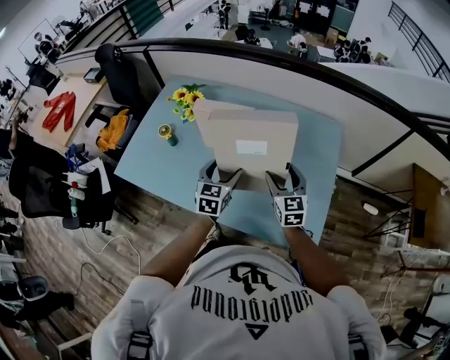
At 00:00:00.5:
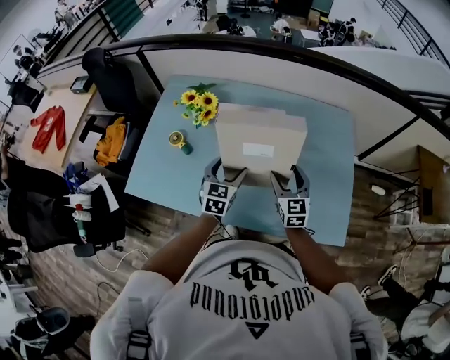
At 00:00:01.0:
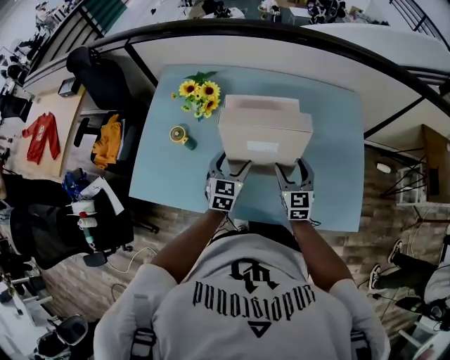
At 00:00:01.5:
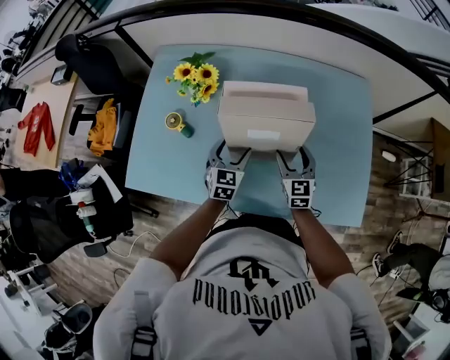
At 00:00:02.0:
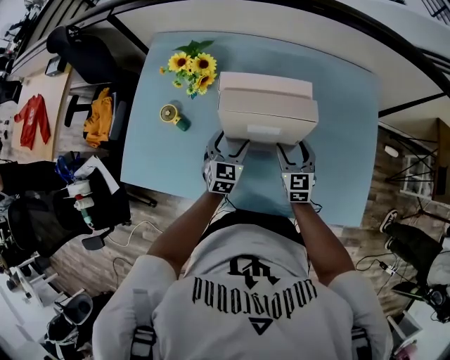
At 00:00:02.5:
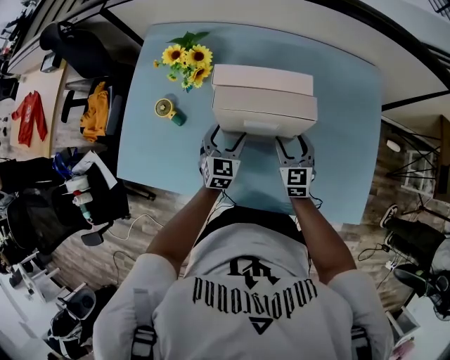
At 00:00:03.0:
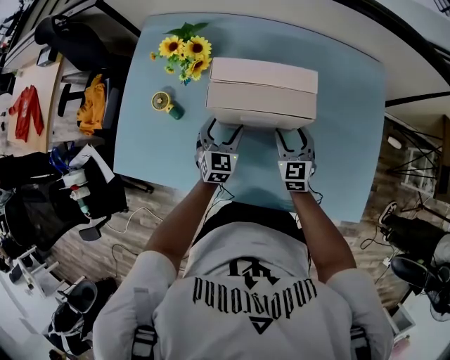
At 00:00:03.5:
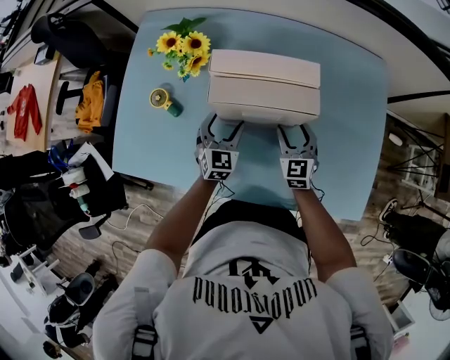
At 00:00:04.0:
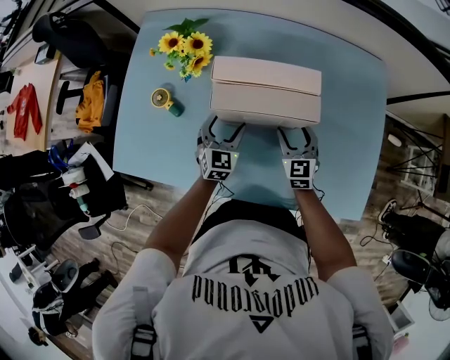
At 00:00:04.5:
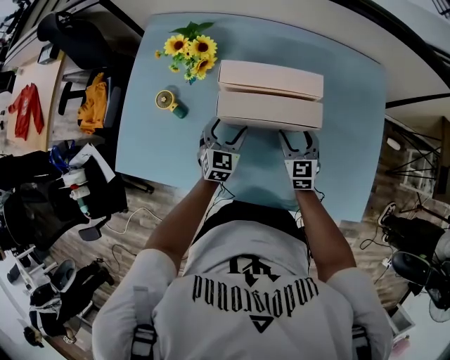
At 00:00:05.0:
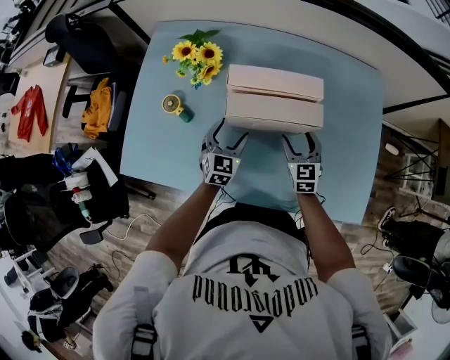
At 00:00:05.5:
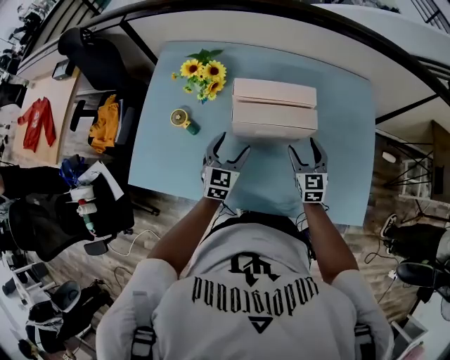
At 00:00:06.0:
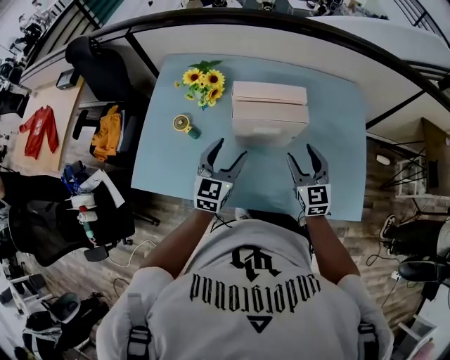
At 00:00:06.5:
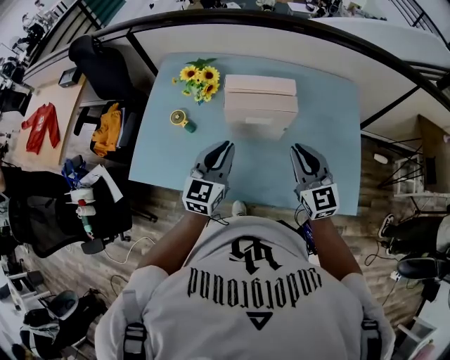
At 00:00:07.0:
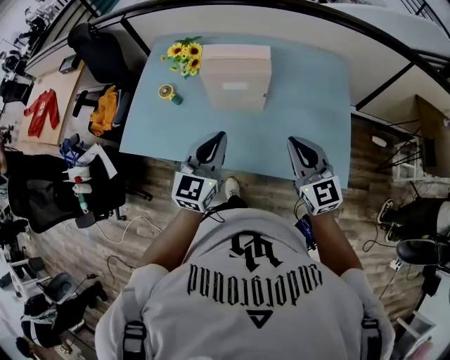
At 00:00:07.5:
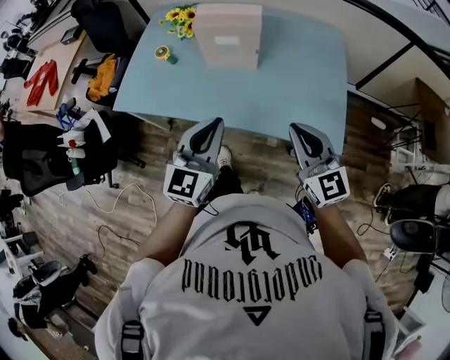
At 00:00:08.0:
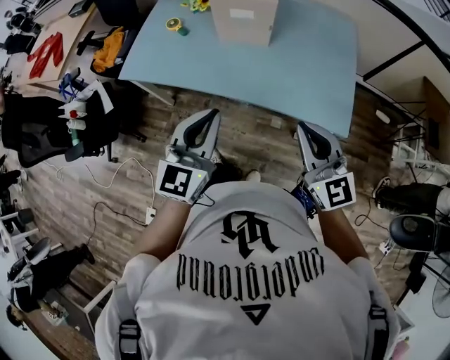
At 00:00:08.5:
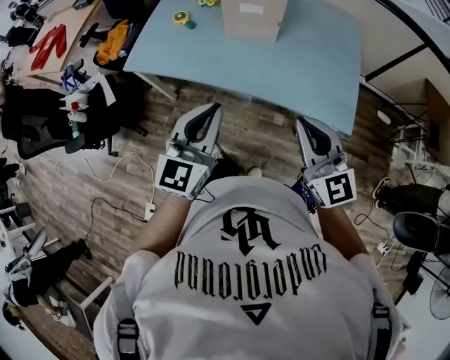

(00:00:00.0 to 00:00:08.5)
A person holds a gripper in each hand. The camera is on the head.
00:00:00.0 - 00:00:02.0: The left gripper travels downward, to the left and forward by roughly 25 cm. Meanwhile the right gripper heads to the left, downward and forward, covering roughly 25 cm.
00:00:02.0 - 00:00:04.0: The grippers stay close to where they were, moving slightly.
00:00:04.0 - 00:00:06.5: The grippers both shift upward and backward by about 30 cm. The right gripper rotates some 20 degrees, and closes its fingers; the left gripper swivels roughly 20 degrees, and closes its fingers.
00:00:06.5 - 00:00:08.5: The grippers both shift backward by about 35 cm.

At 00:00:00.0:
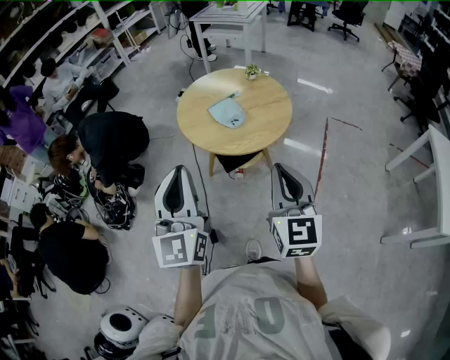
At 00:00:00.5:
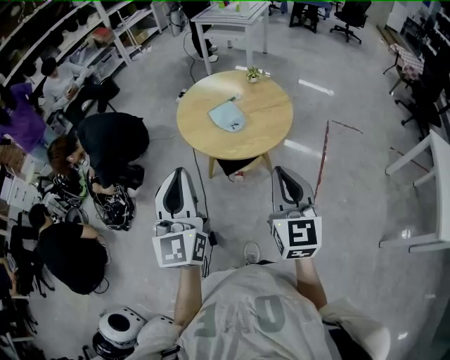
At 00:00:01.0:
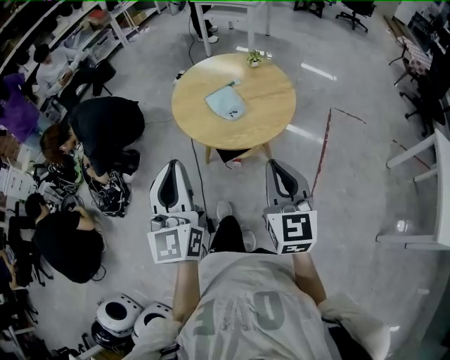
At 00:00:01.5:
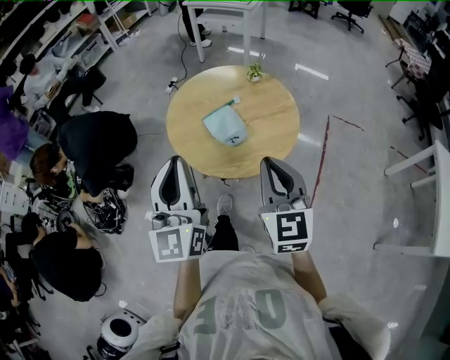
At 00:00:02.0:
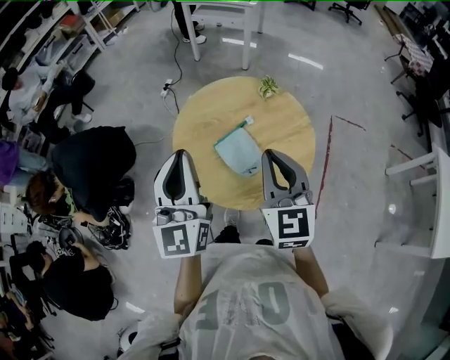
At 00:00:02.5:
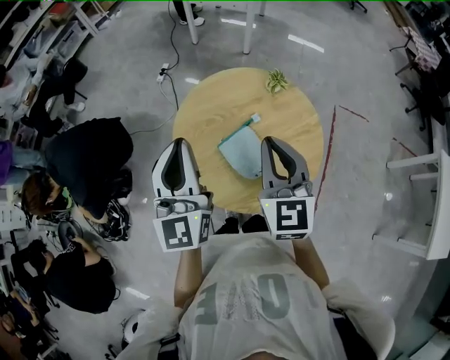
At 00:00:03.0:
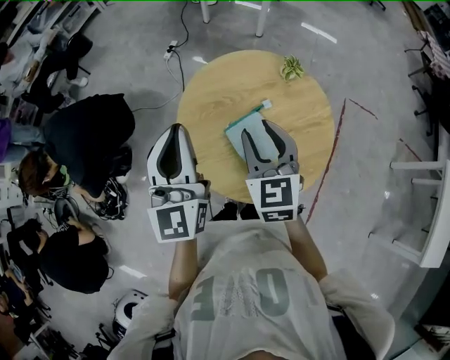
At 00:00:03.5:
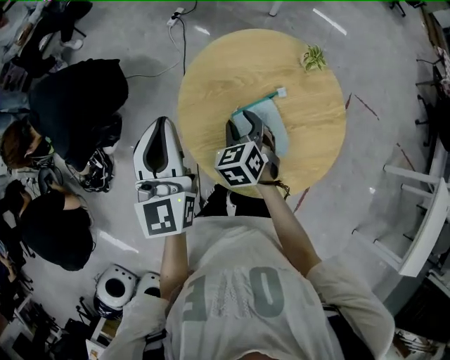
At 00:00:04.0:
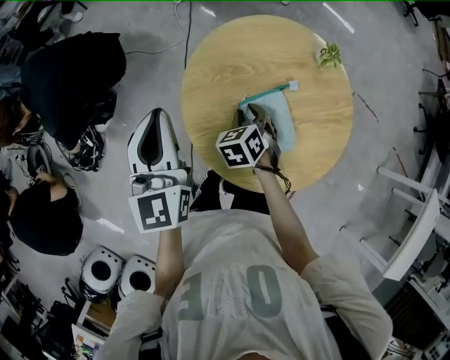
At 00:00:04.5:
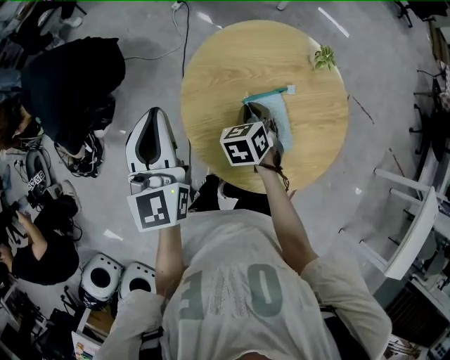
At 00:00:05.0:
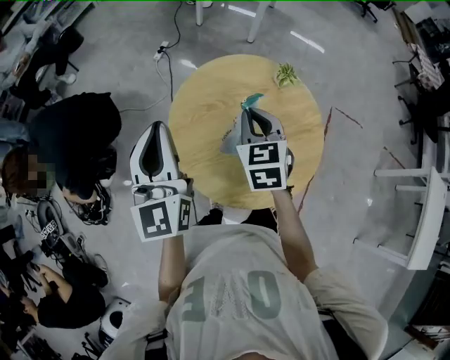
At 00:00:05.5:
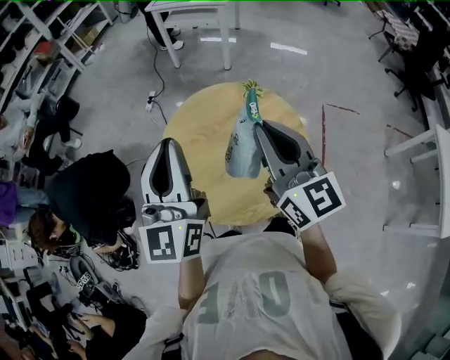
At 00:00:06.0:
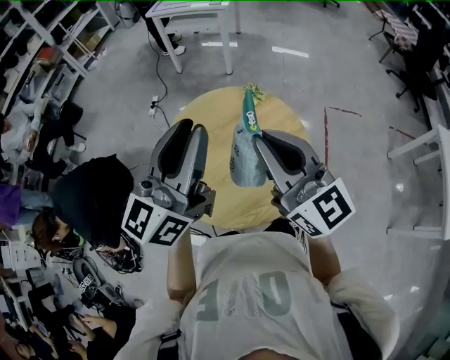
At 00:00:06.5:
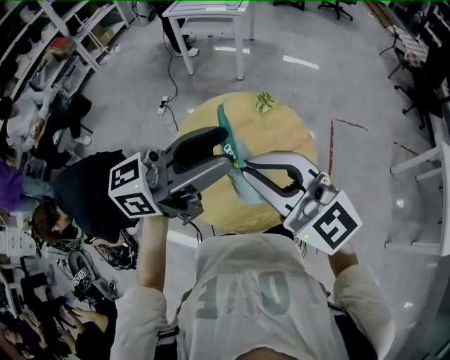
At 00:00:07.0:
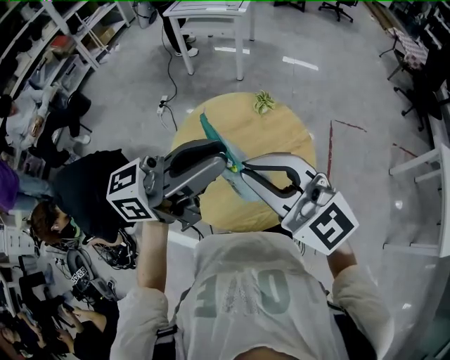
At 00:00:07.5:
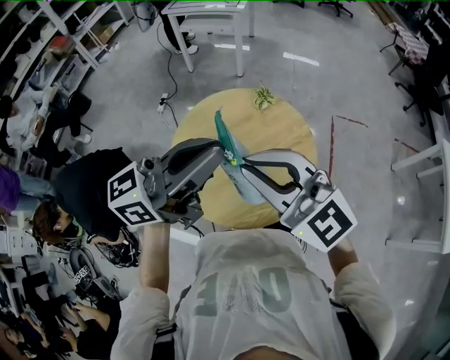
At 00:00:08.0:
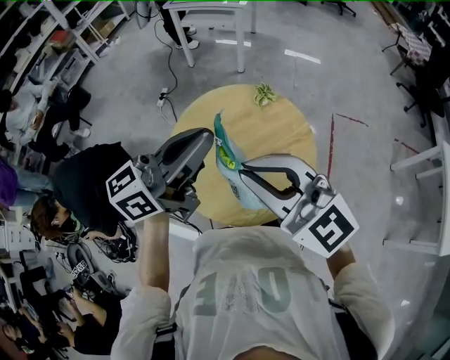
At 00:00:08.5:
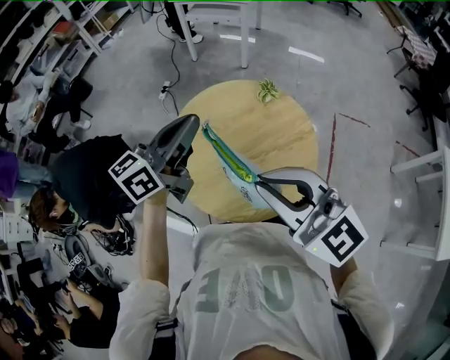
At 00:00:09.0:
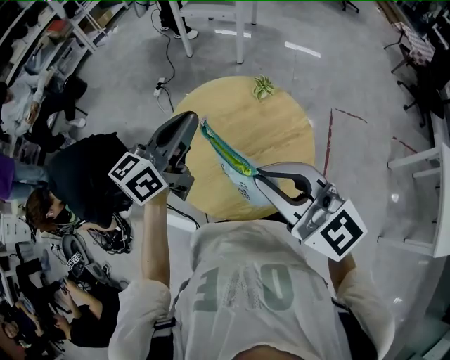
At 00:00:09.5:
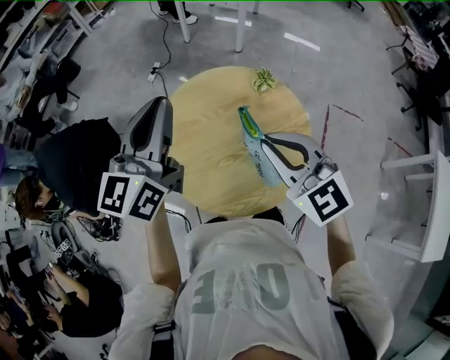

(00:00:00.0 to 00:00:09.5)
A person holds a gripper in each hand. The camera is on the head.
00:00:00.0 - 00:00:02.0: The grippers both shift forward by some 35 cm.
00:00:02.0 - 00:00:04.0: The left gripper moves downward, to the left and forward, about 20 cm, and swivels roughly 20 degrees. The right gripper goes some 35 cm downward and forward, angles its fingers downward, by some 50 degrees, and opens.
00:00:04.0 - 00:00:05.5: The left gripper shifts approximately 25 cm upward and to the right, and swivels approximately 30 degrees, while the right gripper goes approximately 35 cm upward, tilts its fingers some 60 degrees upward, and closes its fingers.
00:00:05.5 - 00:00:07.5: The left gripper ends up about 10 cm from where it was, changes its angle by roughly 70 degrees, and opens, then closes once more. Meanwhile the right gripper moves approximately 10 cm, and swivels approximately 40 degrees.
00:00:07.5 - 00:00:09.5: The right gripper is displaced downward, forward and to the right by roughly 10 cm, and swivels approximately 20 degrees. Meanwhile the left gripper travels forward and to the left by approximately 15 cm, and swivels about 50 degrees.

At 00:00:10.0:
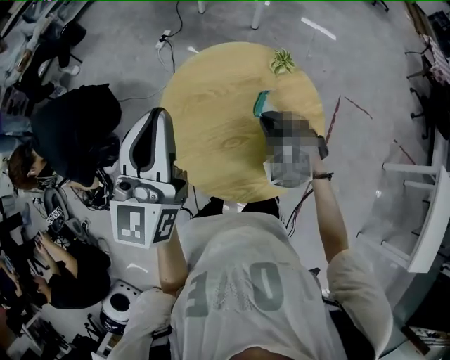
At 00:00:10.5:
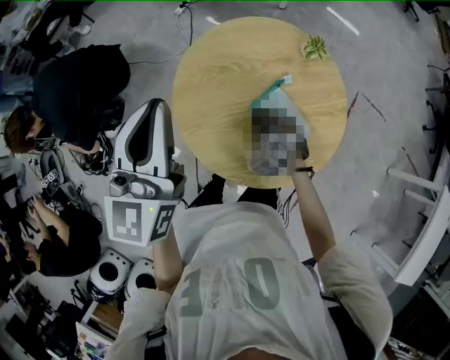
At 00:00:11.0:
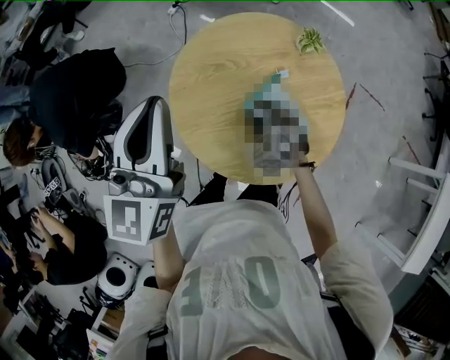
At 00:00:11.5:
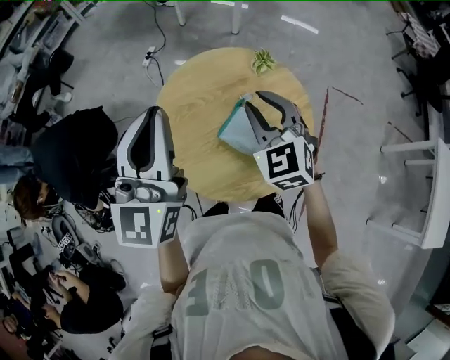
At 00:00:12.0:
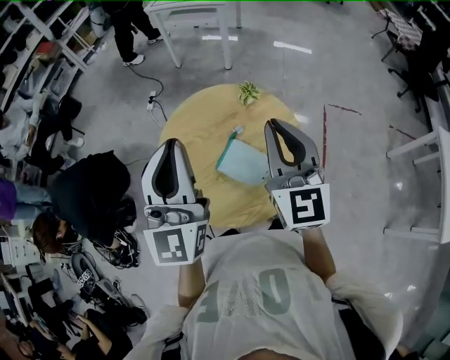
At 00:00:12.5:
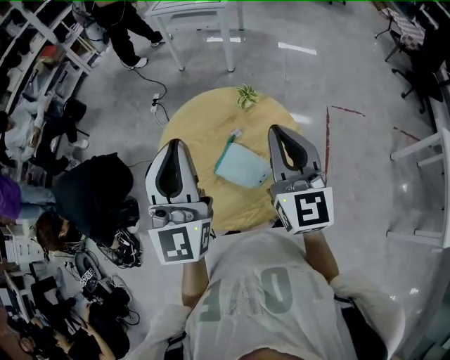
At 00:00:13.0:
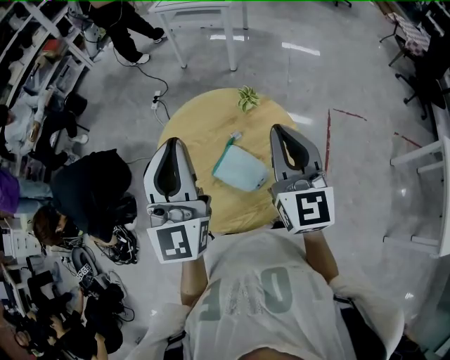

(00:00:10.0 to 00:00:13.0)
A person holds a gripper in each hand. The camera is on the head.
00:00:10.0 - 00:00:11.5: The right gripper is displaced upward by approximately 10 cm, and turns by approximately 30 degrees.
00:00:11.5 - 00:00:13.0: The left gripper moves to the right, roughly 10 cm. Meanwhile the right gripper travels to the right and upward by roughly 15 cm, turns by some 40 degrees, and closes up.

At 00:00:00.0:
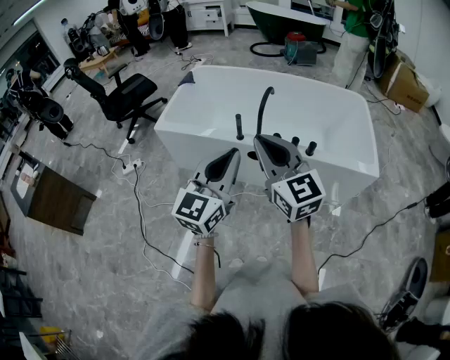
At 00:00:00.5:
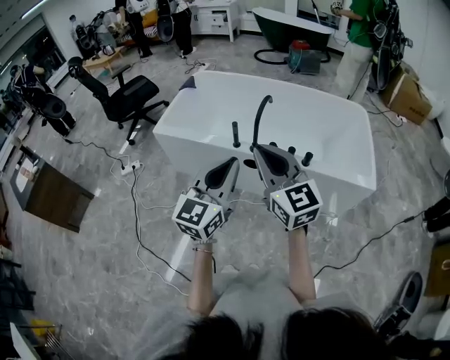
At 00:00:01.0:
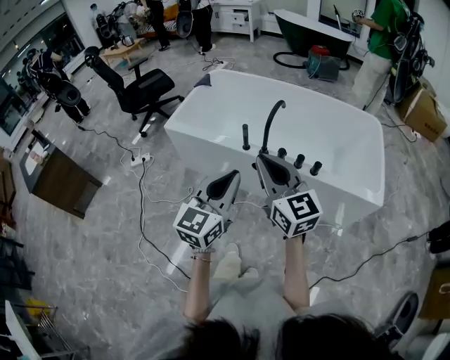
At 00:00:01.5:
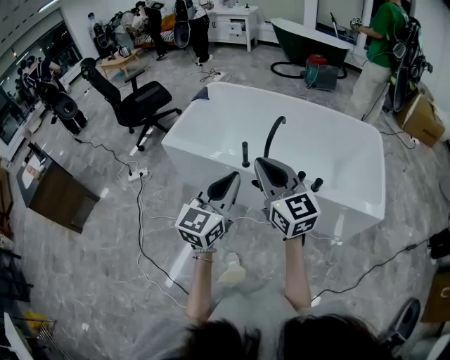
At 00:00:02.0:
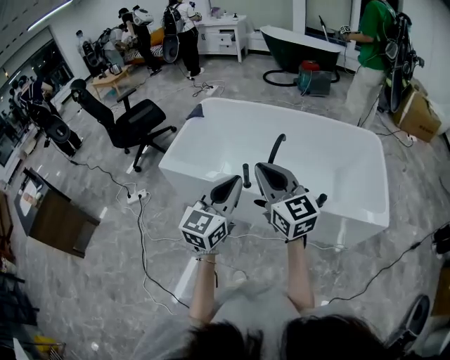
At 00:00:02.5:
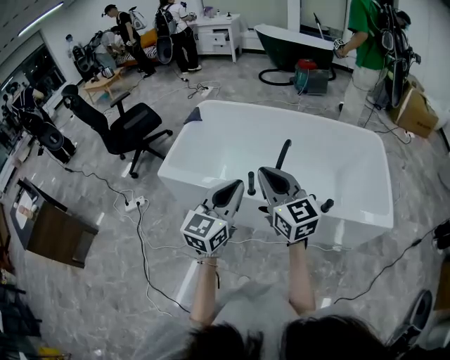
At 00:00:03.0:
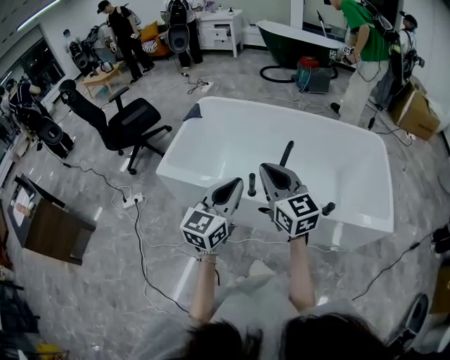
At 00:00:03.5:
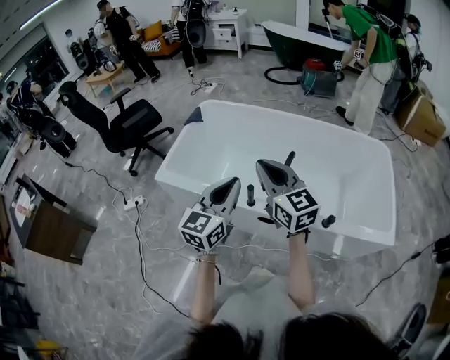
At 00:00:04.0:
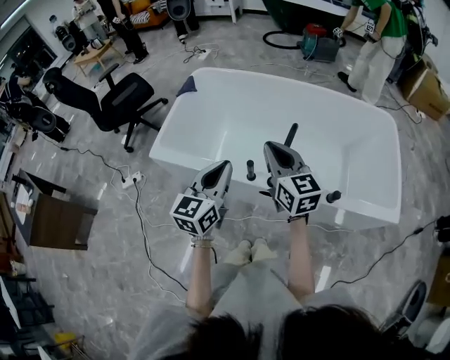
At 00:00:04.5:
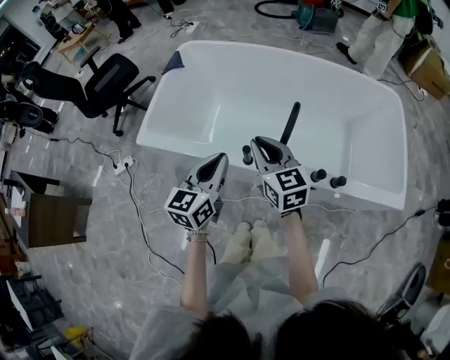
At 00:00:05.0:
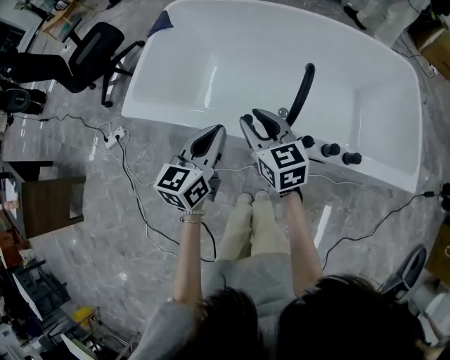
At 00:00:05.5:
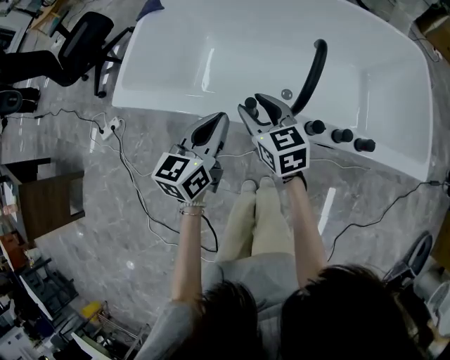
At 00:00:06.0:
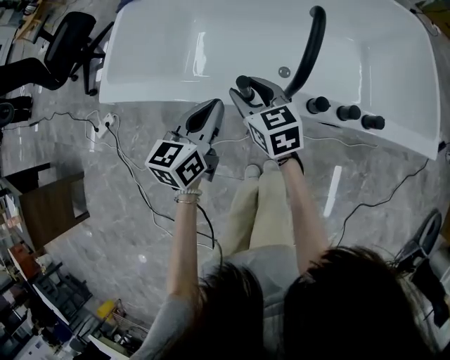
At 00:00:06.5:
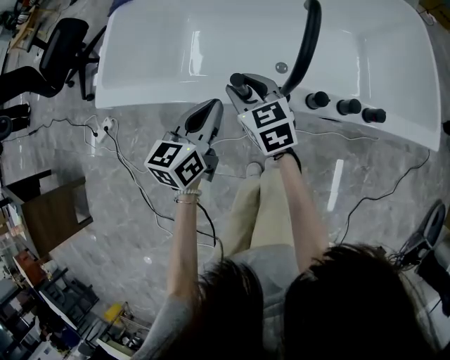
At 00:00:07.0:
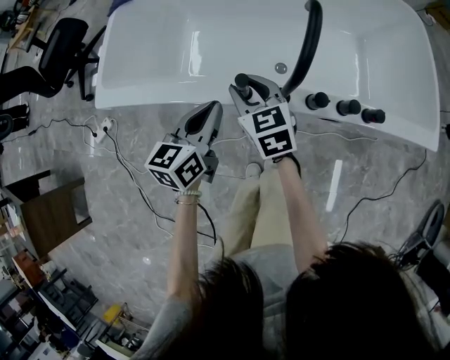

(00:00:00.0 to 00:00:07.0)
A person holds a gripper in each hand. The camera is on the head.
00:00:00.0 - 00:00:02.0: The grippers both shift forward by roughly 20 cm.
00:00:02.0 - 00:00:03.5: The two grippers go roughly 15 cm forward.
00:00:03.5 - 00:00:05.0: The right gripper heads downward, covering roughly 25 cm, rotates approximately 20 degrees, and opens. The left gripper goes roughly 20 cm downward and forward.
00:00:05.0 - 00:00:07.0: The two grippers go roughly 15 cm downward.
